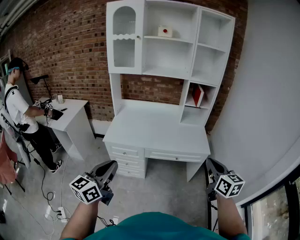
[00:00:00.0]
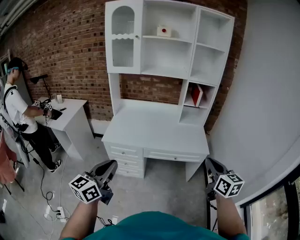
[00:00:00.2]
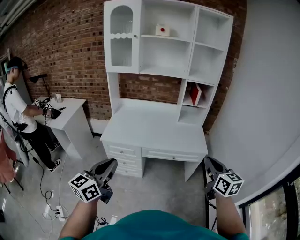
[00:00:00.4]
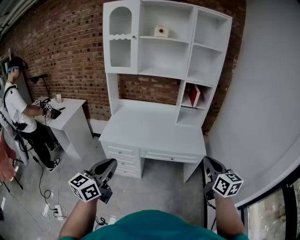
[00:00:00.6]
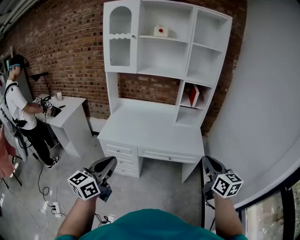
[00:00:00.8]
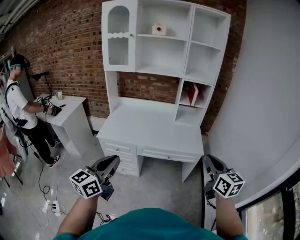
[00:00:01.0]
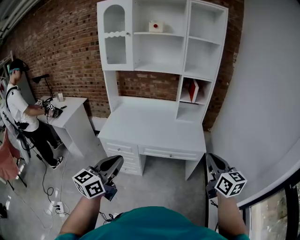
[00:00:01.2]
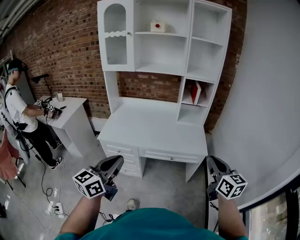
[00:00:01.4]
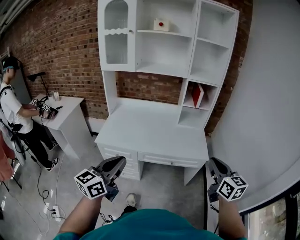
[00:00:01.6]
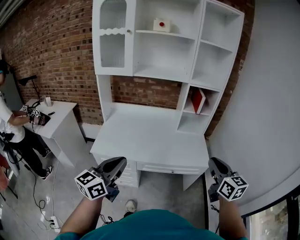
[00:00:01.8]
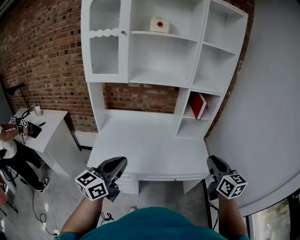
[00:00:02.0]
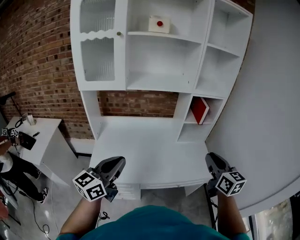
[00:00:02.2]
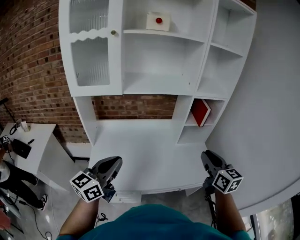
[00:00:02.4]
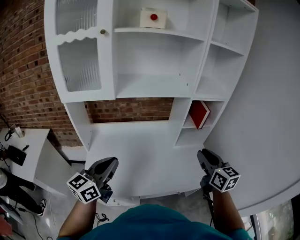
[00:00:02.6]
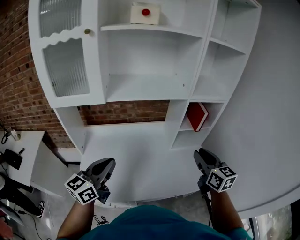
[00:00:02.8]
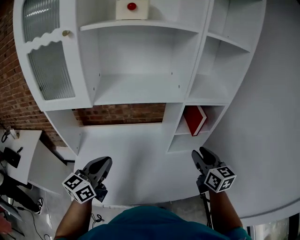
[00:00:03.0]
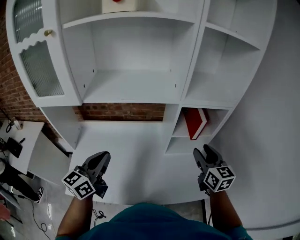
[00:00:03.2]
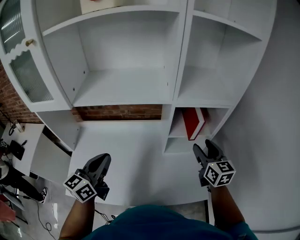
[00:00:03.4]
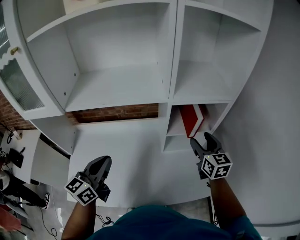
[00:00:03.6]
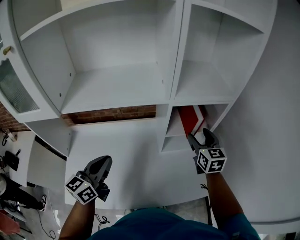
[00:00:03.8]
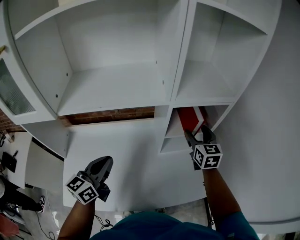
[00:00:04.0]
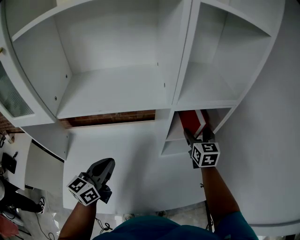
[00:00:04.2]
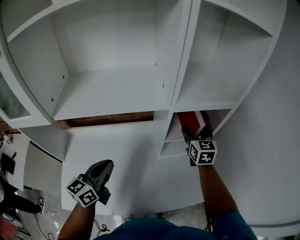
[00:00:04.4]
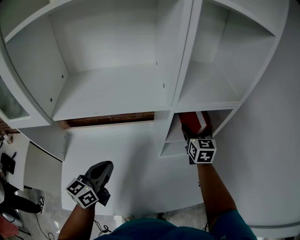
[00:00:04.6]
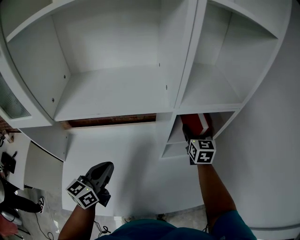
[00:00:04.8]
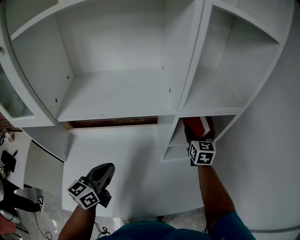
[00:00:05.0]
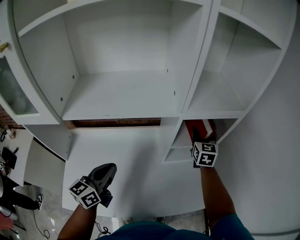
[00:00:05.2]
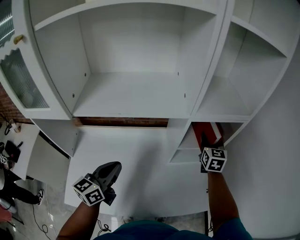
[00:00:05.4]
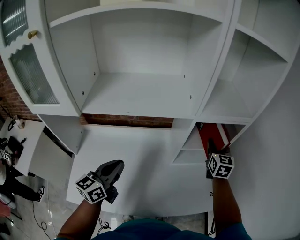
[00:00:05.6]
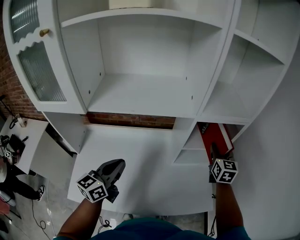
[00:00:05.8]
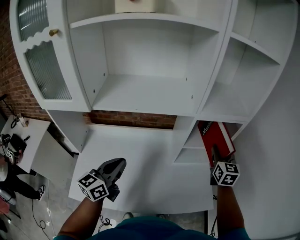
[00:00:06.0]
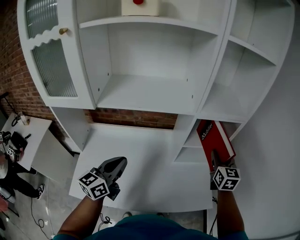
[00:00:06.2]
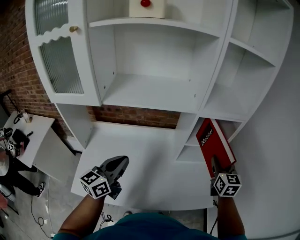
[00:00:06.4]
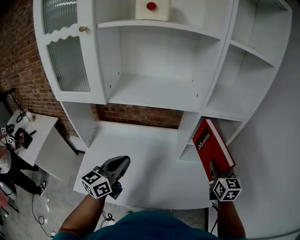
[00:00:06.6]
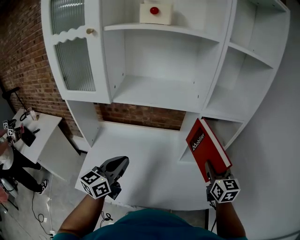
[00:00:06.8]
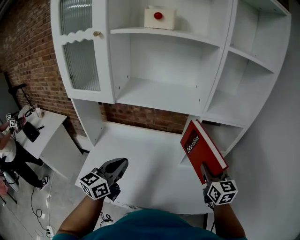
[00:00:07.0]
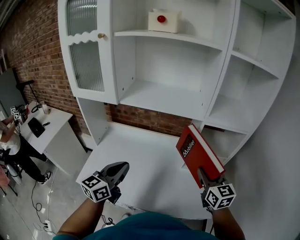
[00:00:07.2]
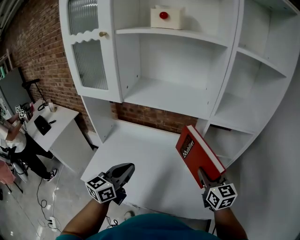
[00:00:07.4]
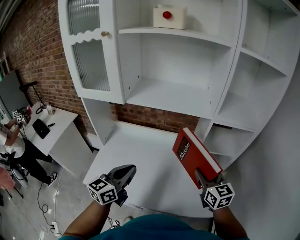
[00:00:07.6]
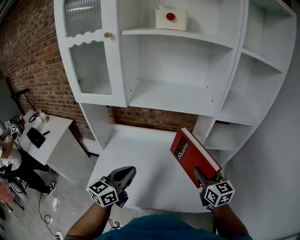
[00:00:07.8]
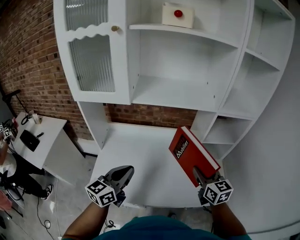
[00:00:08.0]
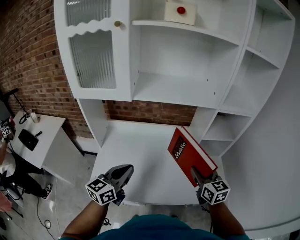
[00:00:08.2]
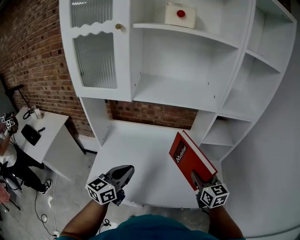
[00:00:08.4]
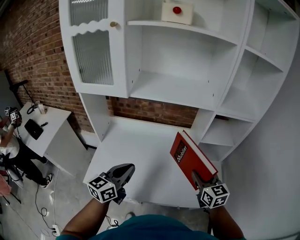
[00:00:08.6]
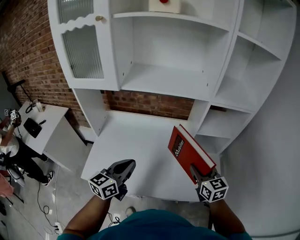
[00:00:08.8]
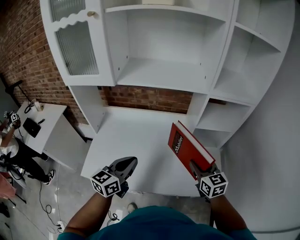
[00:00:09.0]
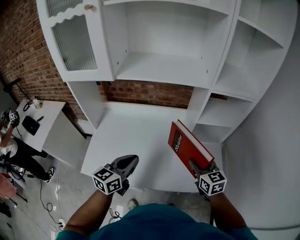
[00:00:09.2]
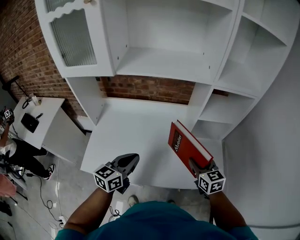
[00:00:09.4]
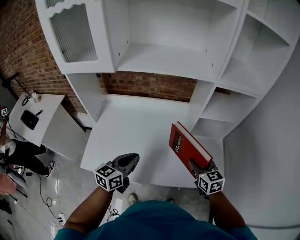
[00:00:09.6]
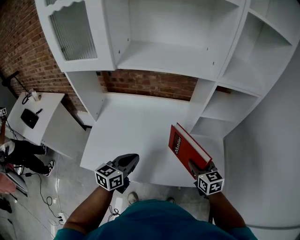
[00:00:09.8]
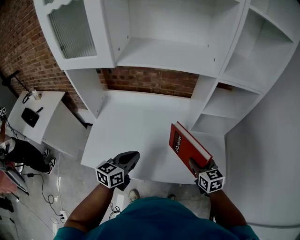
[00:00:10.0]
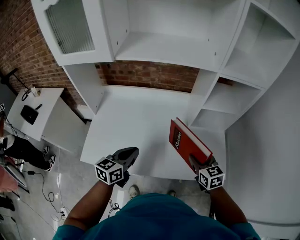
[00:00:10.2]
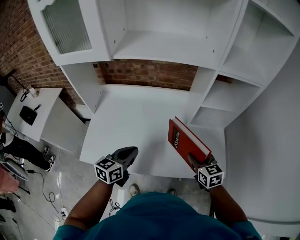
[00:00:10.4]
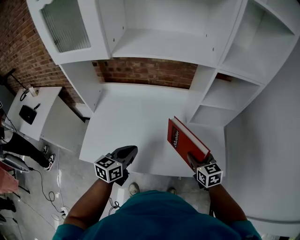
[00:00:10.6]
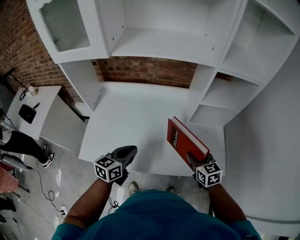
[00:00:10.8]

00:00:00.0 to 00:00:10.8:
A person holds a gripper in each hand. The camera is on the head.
00:00:00.0 to 00:00:01.6: Both grippers move forward and to the right, roughly 10 cm.
00:00:01.6 to 00:00:03.0: The two grippers travel together, forward, about 40 cm. The right gripper opens its fingers.
00:00:03.0 to 00:00:04.6: The right gripper travels forward by about 25 cm, and opens its fingers. The left gripper goes some 15 cm forward, downward and to the right.
00:00:04.6 to 00:00:06.2: The right gripper heads backward and to the right, covering approximately 15 cm, and closes up. Meanwhile the left gripper travels backward by about 5 cm.
00:00:06.2 to 00:00:07.8: The right gripper is displaced to the left and backward by about 20 cm, and rotates about 30 degrees. Meanwhile the left gripper heads backward, covering approximately 10 cm.
00:00:07.8 to 00:00:09.2: Both grippers move downward, roughly 10 cm.
00:00:09.2 to 00:00:10.8: The two grippers go some 10 cm downward.

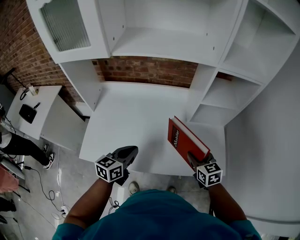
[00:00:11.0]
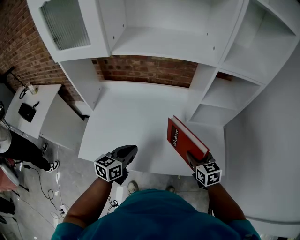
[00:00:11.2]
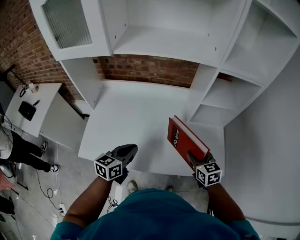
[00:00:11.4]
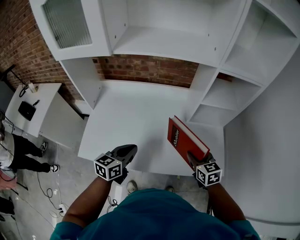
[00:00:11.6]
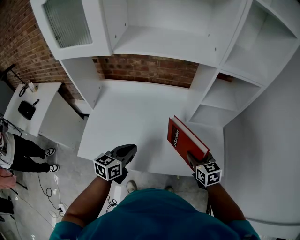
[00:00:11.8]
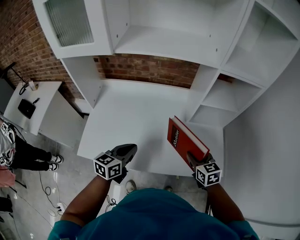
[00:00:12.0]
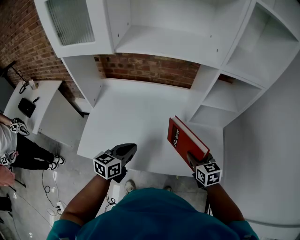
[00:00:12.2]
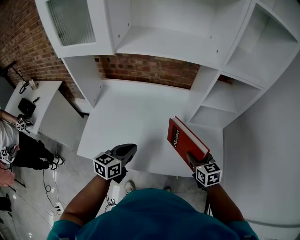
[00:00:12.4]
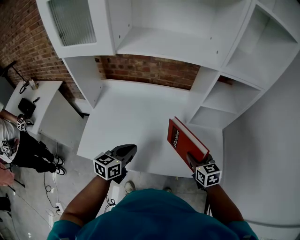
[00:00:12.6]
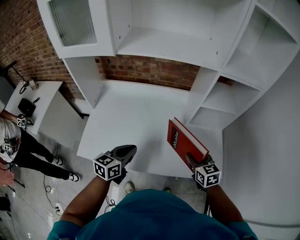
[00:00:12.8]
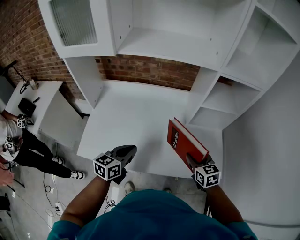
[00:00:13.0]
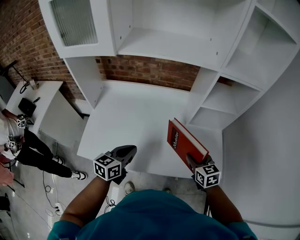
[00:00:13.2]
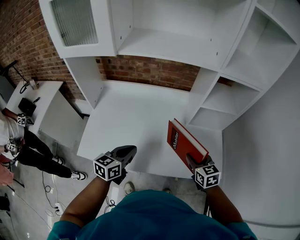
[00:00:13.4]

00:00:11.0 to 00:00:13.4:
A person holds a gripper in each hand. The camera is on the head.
00:00:11.0 to 00:00:13.4: Both grippers stay put.

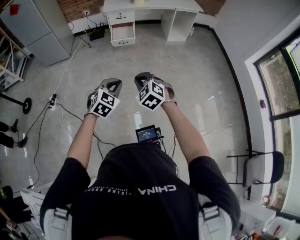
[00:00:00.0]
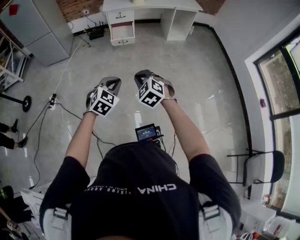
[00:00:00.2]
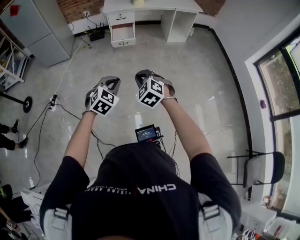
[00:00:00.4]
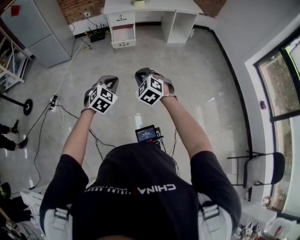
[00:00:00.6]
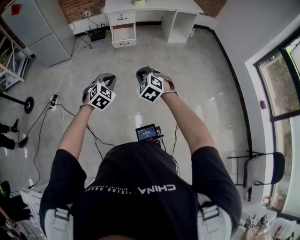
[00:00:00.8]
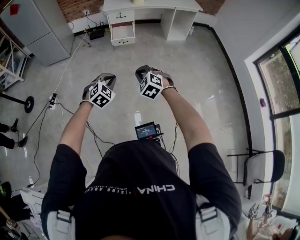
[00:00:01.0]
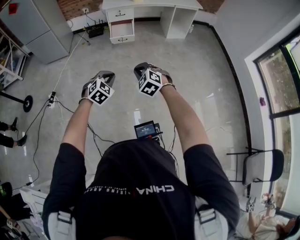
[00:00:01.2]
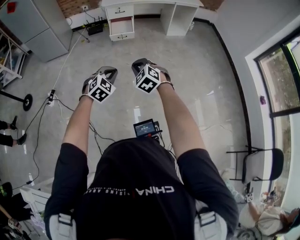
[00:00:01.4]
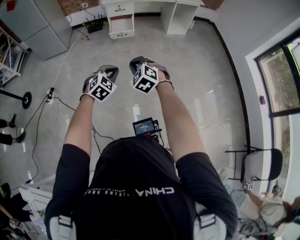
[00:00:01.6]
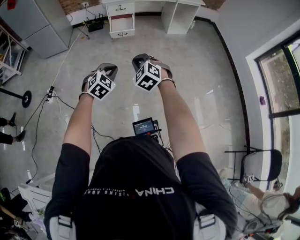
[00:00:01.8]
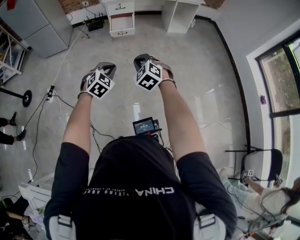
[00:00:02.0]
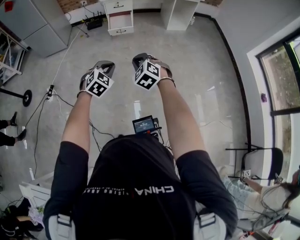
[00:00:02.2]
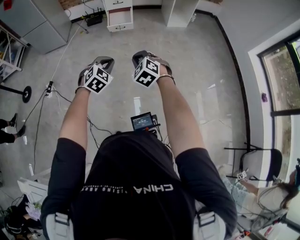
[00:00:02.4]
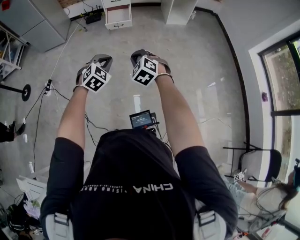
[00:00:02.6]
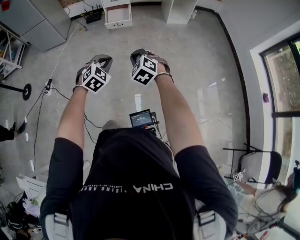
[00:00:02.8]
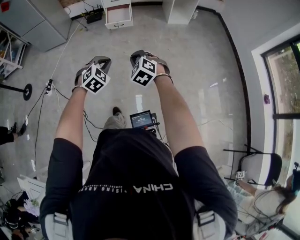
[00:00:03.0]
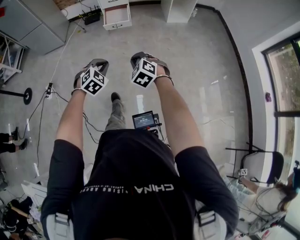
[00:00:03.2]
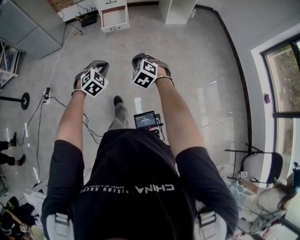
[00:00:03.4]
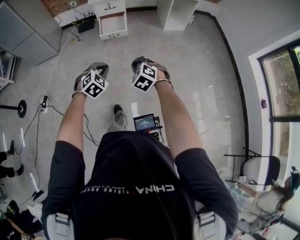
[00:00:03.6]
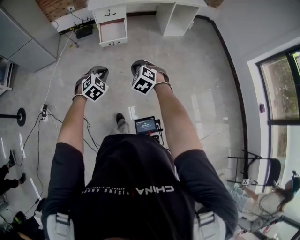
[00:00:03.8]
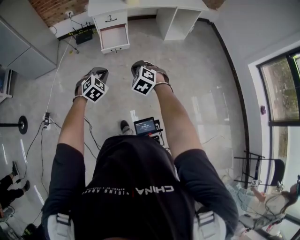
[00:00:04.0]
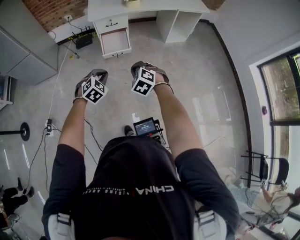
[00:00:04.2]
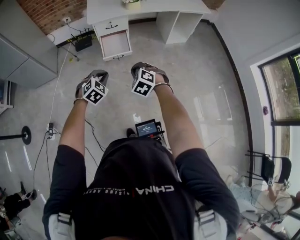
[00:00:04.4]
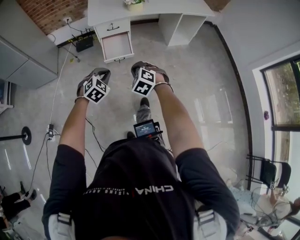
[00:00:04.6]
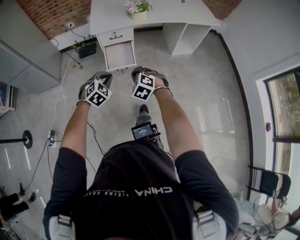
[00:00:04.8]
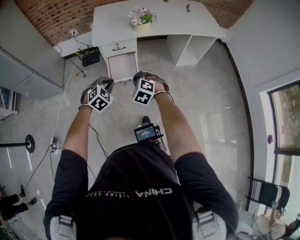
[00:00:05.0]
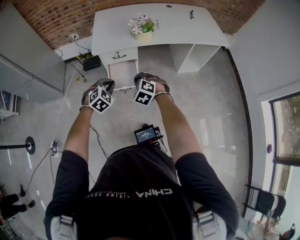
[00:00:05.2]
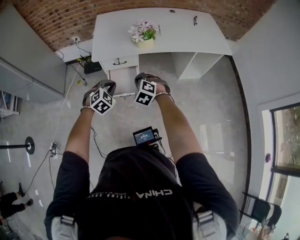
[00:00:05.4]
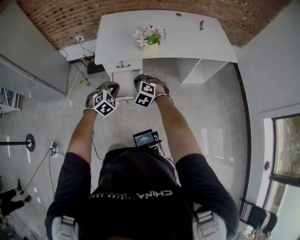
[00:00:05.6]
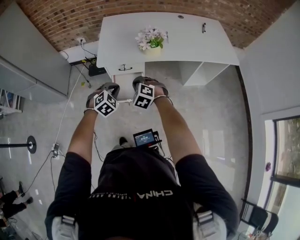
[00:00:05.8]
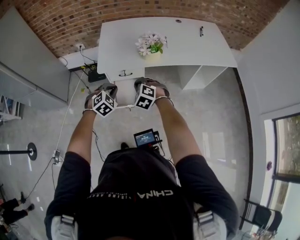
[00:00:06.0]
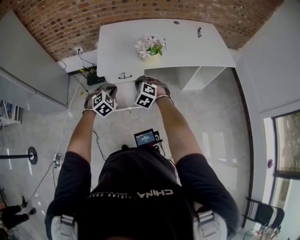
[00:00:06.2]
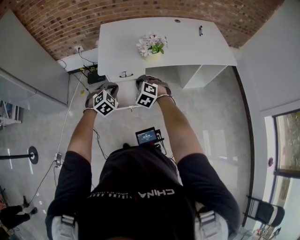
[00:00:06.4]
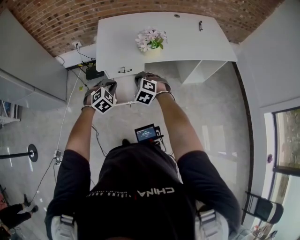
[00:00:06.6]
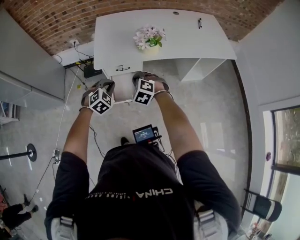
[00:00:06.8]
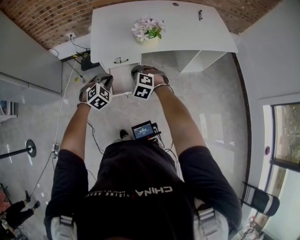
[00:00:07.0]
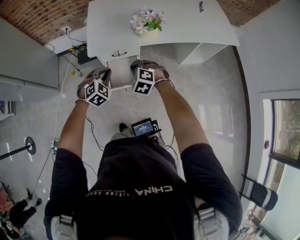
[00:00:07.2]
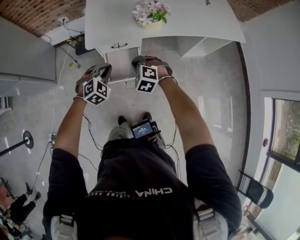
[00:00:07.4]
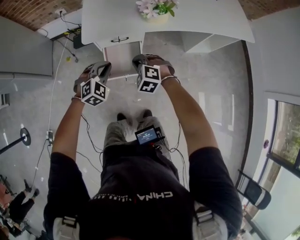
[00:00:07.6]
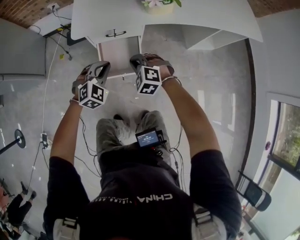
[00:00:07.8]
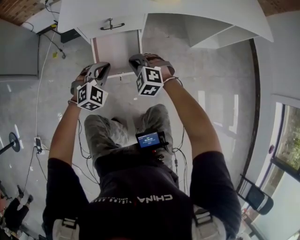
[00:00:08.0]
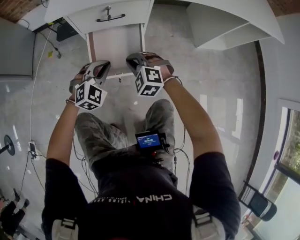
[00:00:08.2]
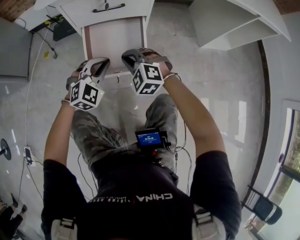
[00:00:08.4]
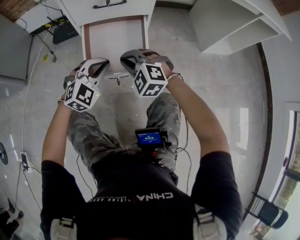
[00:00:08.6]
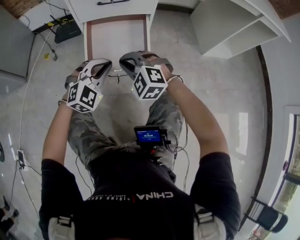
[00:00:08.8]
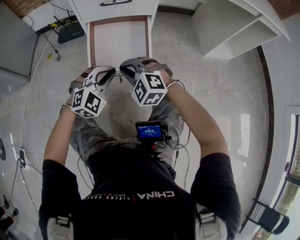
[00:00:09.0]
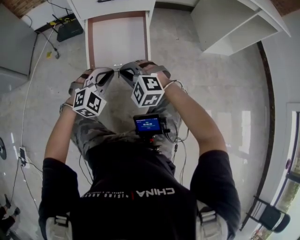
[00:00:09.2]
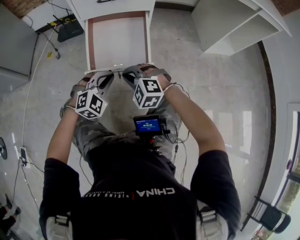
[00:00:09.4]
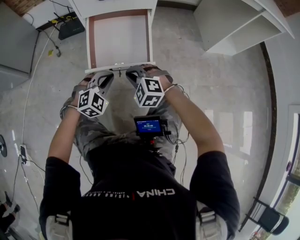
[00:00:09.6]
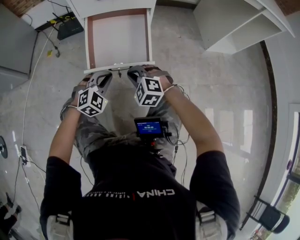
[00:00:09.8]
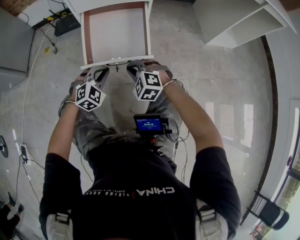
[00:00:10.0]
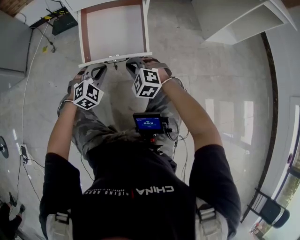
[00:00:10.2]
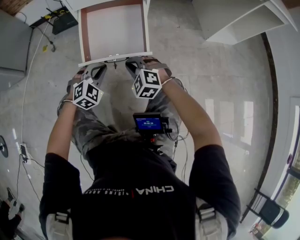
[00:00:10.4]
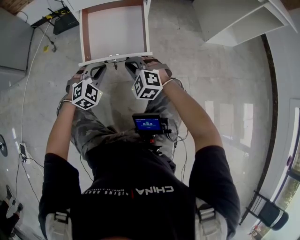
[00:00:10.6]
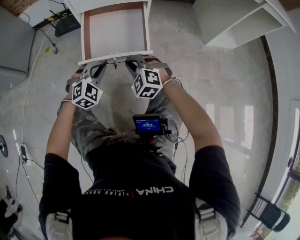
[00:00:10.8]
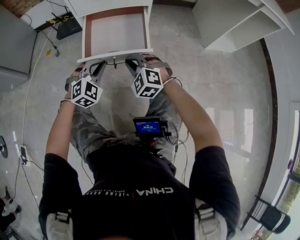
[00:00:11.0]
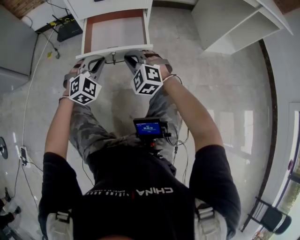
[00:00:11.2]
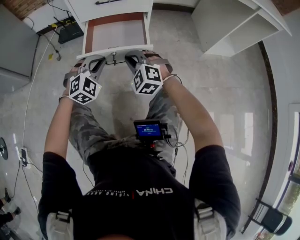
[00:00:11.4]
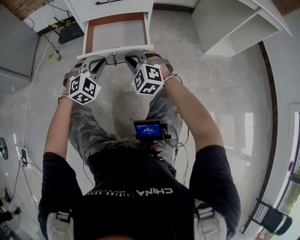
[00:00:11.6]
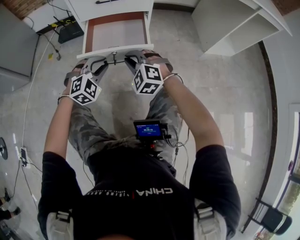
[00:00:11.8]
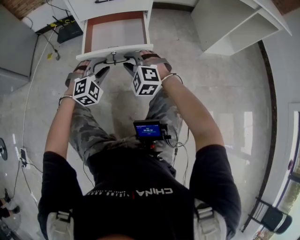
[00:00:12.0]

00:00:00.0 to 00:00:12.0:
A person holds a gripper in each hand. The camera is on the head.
00:00:00.0 to 00:00:01.6: The left gripper moves approximately 5 cm.
00:00:01.6 to 00:00:03.0: Both grippers travel together to the right, some 10 cm.
00:00:03.0 to 00:00:04.4: The pair of grippers is taken forward, approximately 50 cm.
00:00:04.4 to 00:00:06.0: The two grippers travel together, forward, some 50 cm.
00:00:06.0 to 00:00:07.6: The grippers both shift downward and forward by some 15 cm.
00:00:07.6 to 00:00:09.0: The two grippers go about 40 cm downward. The right gripper swivels about 20 degrees.
00:00:09.0 to 00:00:10.4: Both grippers move downward, roughly 10 cm.
00:00:10.4 to 00:00:12.0: The left gripper opens, while the right gripper heads upward, covering roughly 5 cm, and opens.
